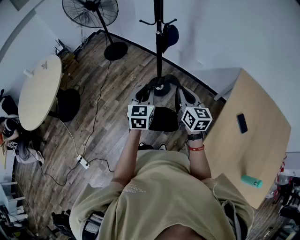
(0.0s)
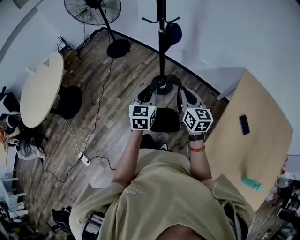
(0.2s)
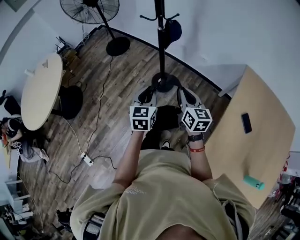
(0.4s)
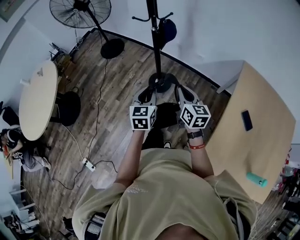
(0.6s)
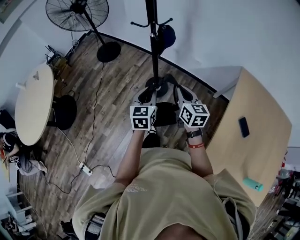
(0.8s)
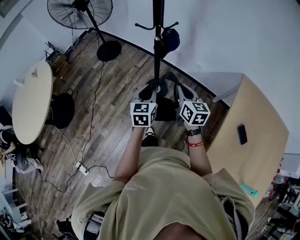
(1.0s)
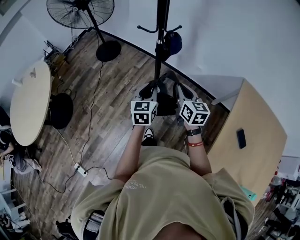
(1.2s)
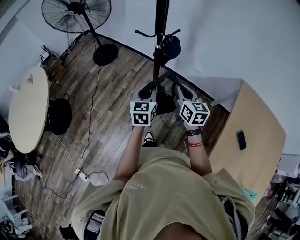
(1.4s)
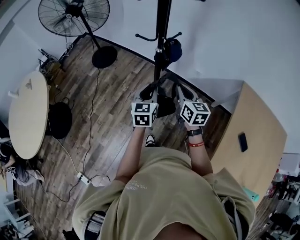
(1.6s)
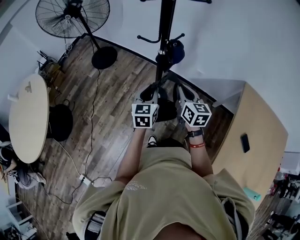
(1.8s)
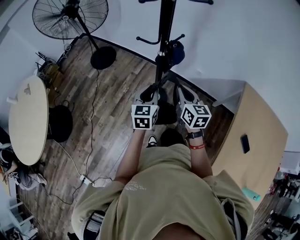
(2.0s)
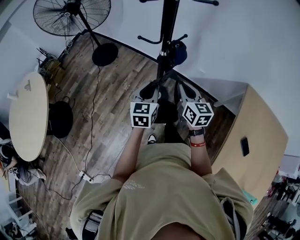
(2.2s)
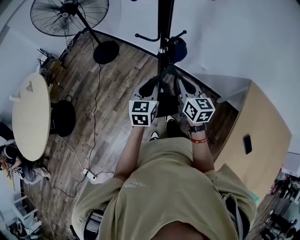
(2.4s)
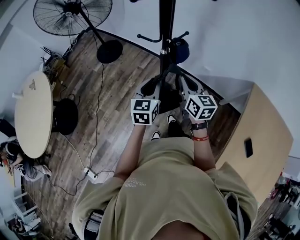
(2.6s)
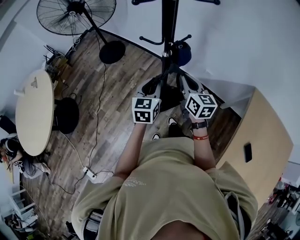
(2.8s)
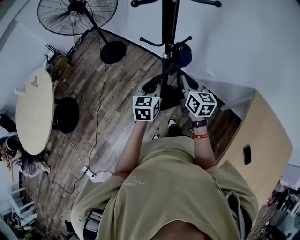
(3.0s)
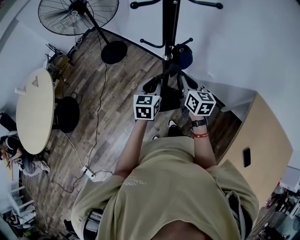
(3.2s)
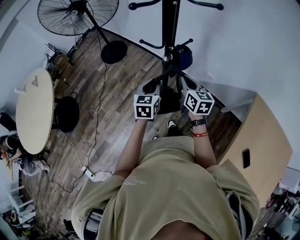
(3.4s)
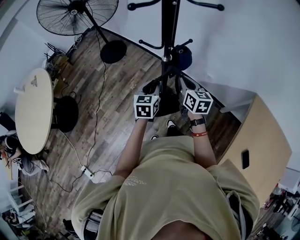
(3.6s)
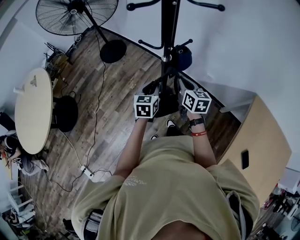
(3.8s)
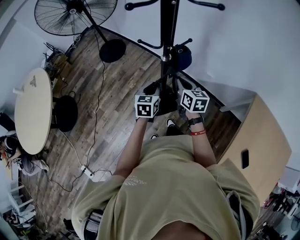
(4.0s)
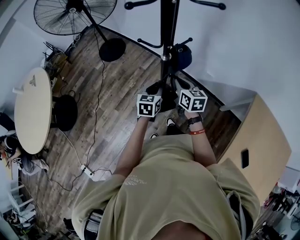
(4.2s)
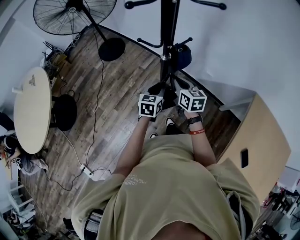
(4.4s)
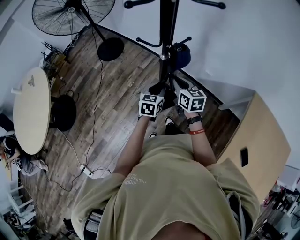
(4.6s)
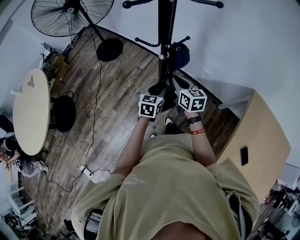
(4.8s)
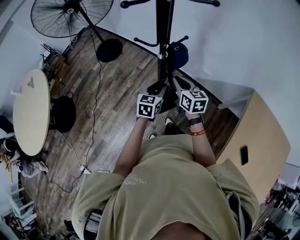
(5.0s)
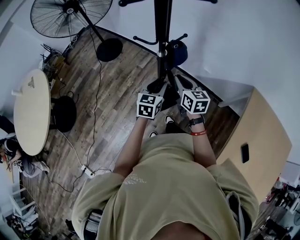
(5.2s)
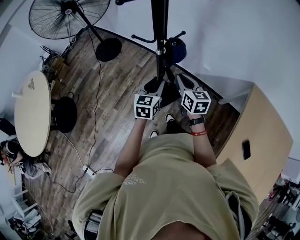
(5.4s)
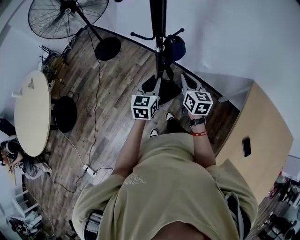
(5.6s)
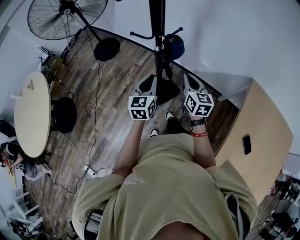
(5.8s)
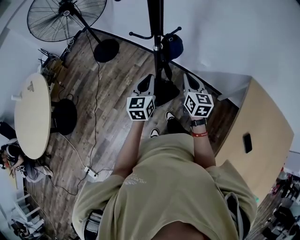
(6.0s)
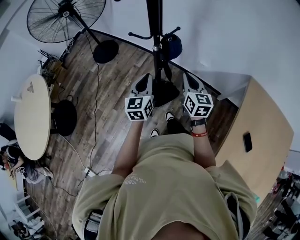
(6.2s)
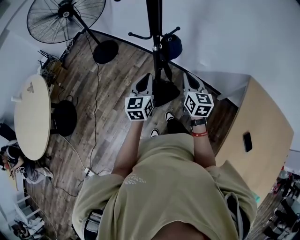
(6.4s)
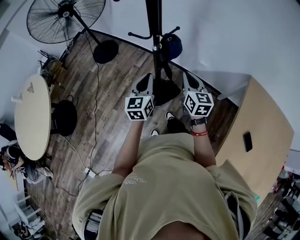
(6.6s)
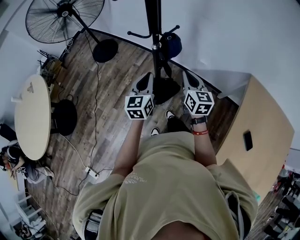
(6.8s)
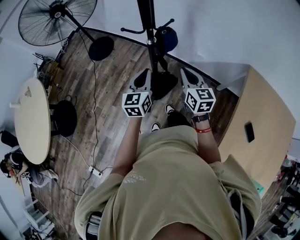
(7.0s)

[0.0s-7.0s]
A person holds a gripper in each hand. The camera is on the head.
0.0s to 1.4s: Both grippers travel together forward, approximately 25 cm.
1.4s to 2.8s: The grippers both shift forward by roughly 15 cm.
2.8s to 4.2s: The left gripper shifts roughly 10 cm downward. Meanwhile the right gripper goes some 10 cm downward and forward.
4.2s to 5.6s: The left gripper heads upward, covering about 5 cm; the right gripper moves to the right and backward, some 10 cm.
5.6s to 7.0s: There are only small adjustments of the grippers.

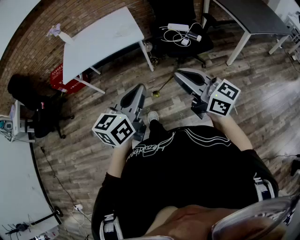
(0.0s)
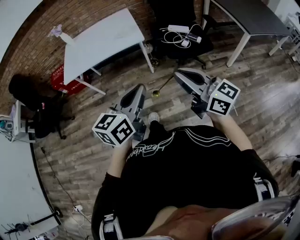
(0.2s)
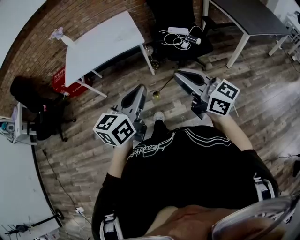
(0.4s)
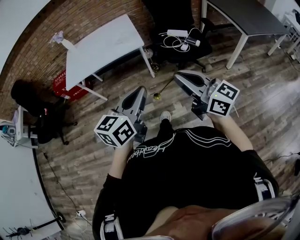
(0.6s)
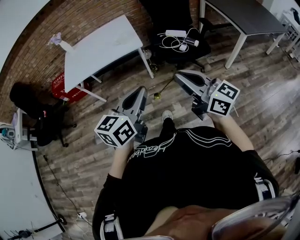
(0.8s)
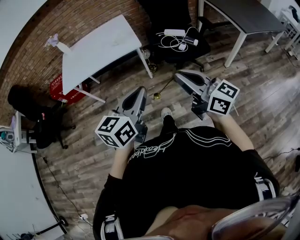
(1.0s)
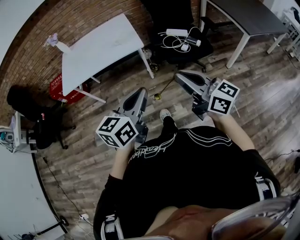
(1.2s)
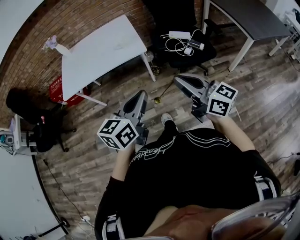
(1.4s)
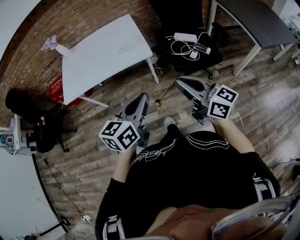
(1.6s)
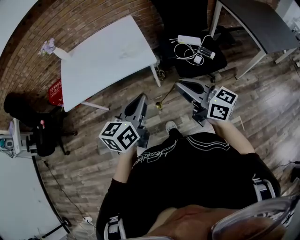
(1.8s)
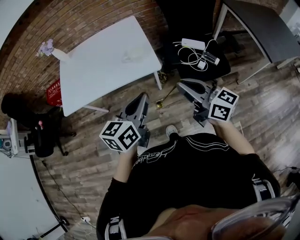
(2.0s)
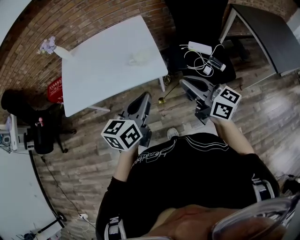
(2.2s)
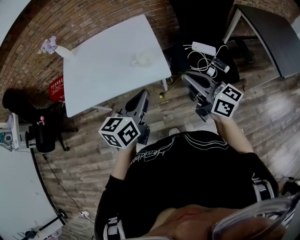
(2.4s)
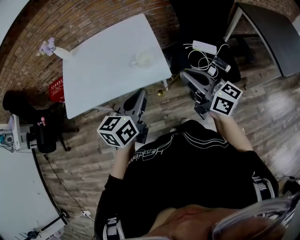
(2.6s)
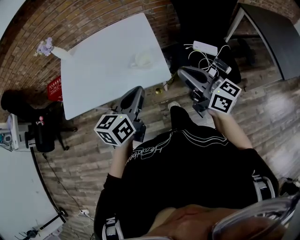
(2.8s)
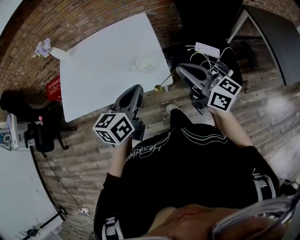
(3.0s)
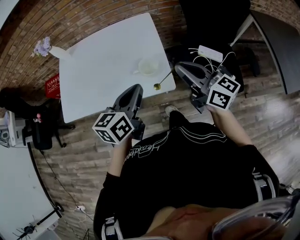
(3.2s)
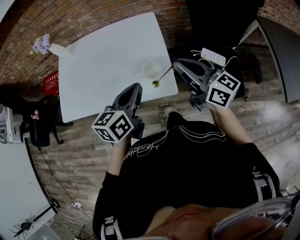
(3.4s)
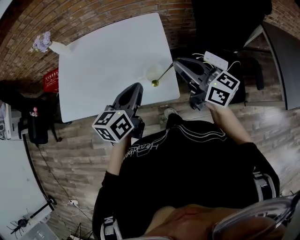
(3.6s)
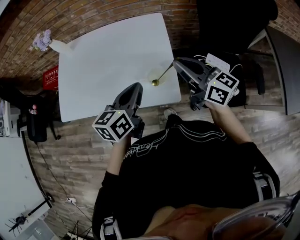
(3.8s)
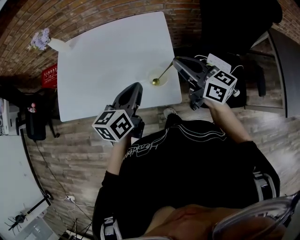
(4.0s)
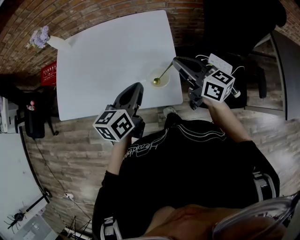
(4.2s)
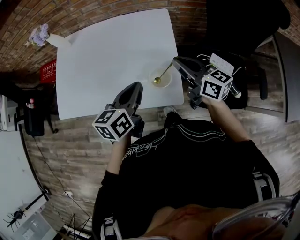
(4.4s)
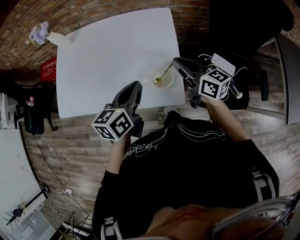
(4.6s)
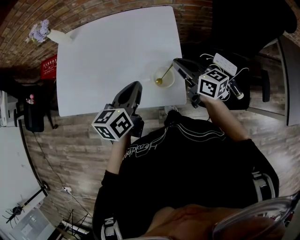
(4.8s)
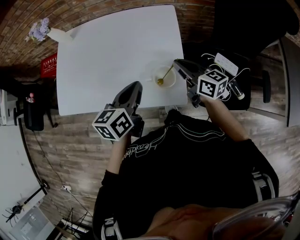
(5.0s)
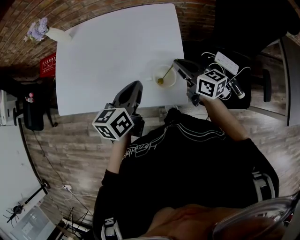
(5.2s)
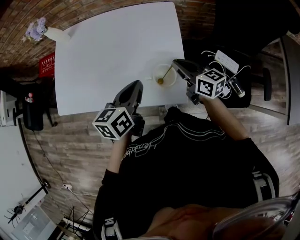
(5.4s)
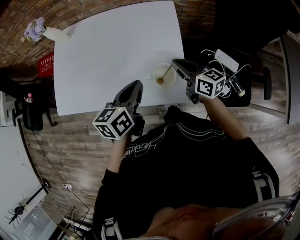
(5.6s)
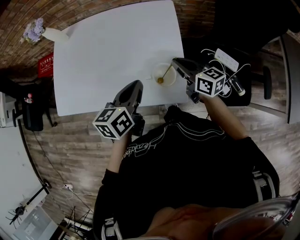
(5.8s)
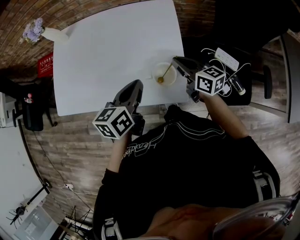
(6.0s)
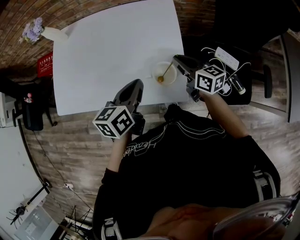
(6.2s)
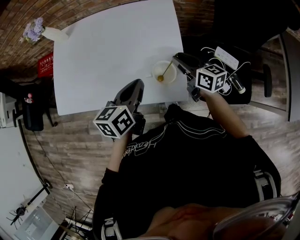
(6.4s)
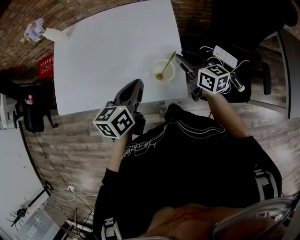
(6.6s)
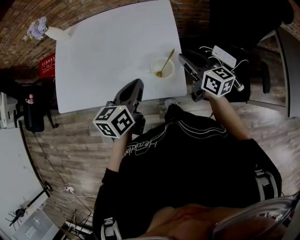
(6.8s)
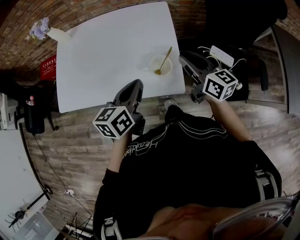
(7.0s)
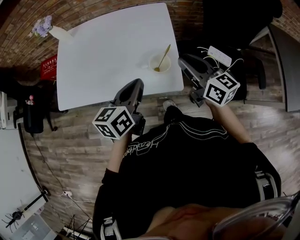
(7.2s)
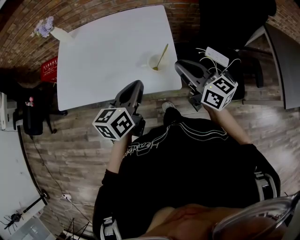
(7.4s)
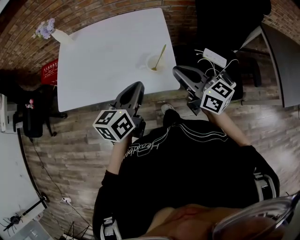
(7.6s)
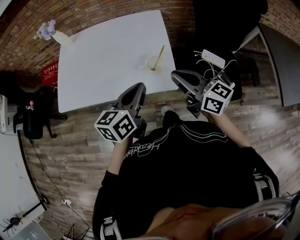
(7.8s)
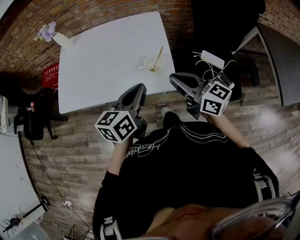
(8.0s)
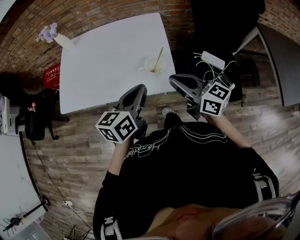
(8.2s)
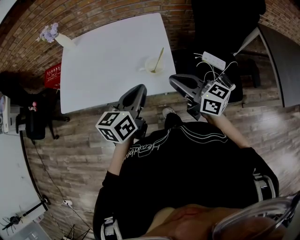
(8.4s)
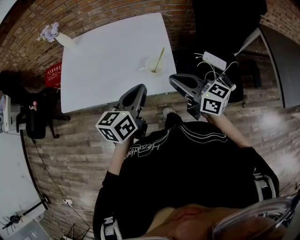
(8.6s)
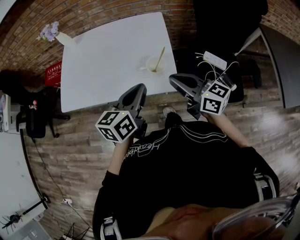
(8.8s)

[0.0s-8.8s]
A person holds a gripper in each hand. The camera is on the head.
0.0s to 1.4s: Both grippers travel together forward, about 10 cm.
1.4s to 3.0s: The pair of grippers is taken forward, some 40 cm.
3.0s to 4.4s: The grippers both shift forward and downward by some 20 cm.
4.4s to 5.8s: The right gripper goes approximately 10 cm downward.
5.8s to 7.4s: The right gripper travels upward and backward by roughly 20 cm, and opens, then closes once more, while the left gripper moves backward and upward, about 10 cm.
7.4s to 8.8s: The right gripper is displaced backward by about 5 cm.

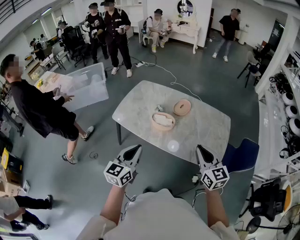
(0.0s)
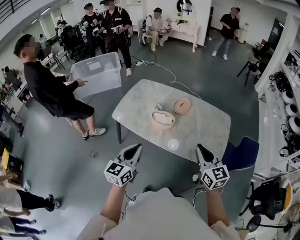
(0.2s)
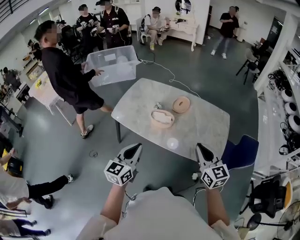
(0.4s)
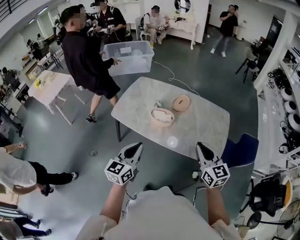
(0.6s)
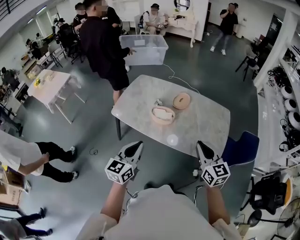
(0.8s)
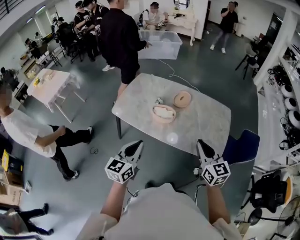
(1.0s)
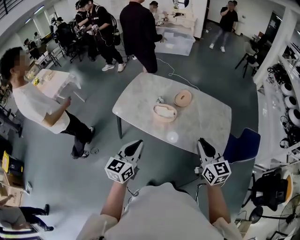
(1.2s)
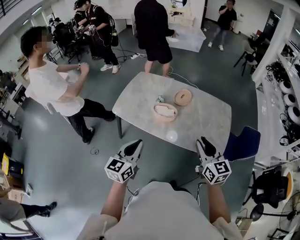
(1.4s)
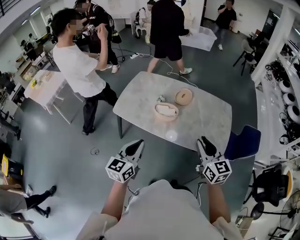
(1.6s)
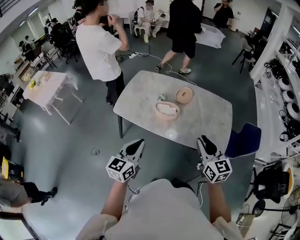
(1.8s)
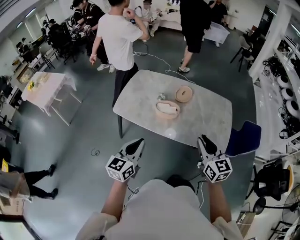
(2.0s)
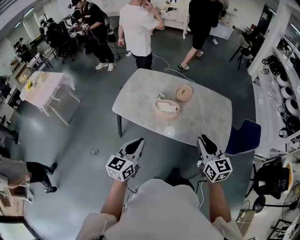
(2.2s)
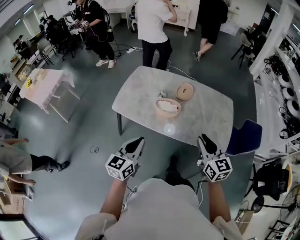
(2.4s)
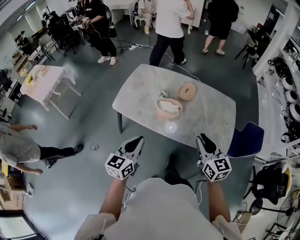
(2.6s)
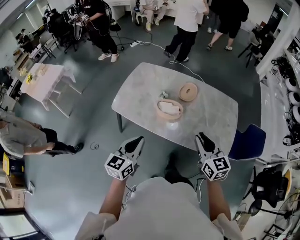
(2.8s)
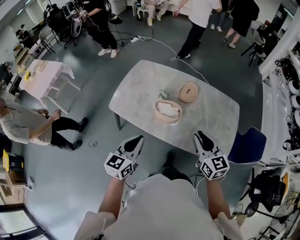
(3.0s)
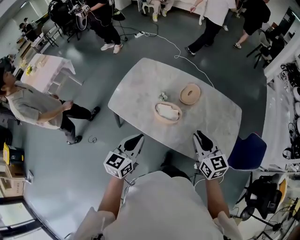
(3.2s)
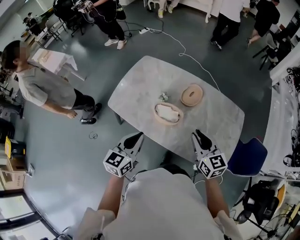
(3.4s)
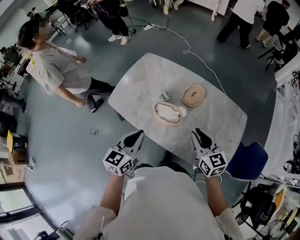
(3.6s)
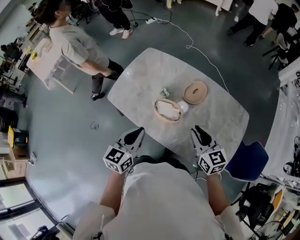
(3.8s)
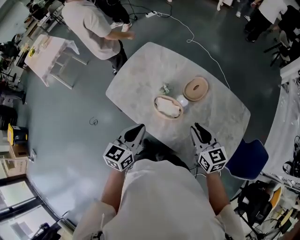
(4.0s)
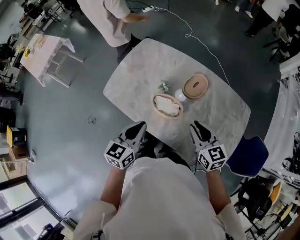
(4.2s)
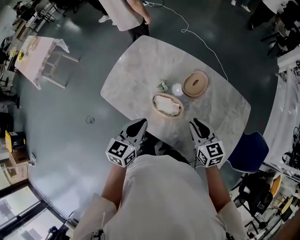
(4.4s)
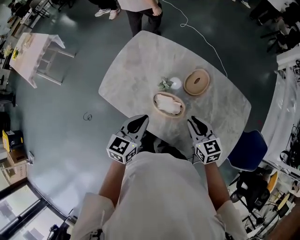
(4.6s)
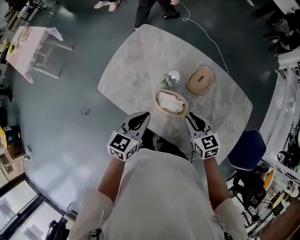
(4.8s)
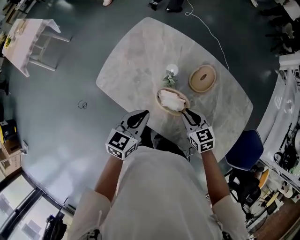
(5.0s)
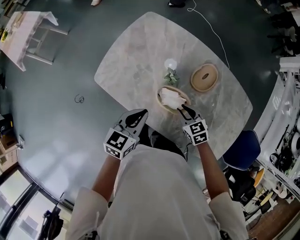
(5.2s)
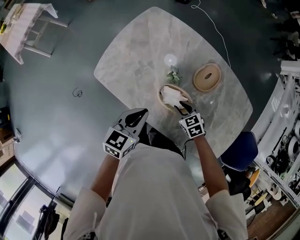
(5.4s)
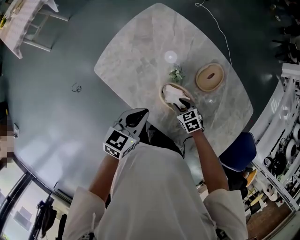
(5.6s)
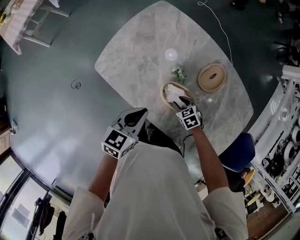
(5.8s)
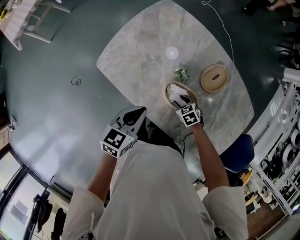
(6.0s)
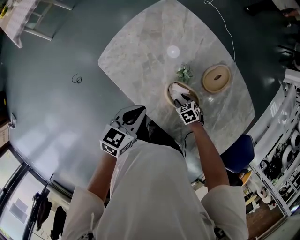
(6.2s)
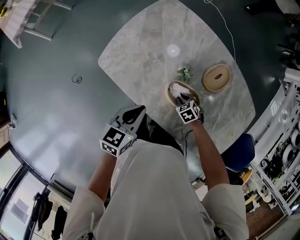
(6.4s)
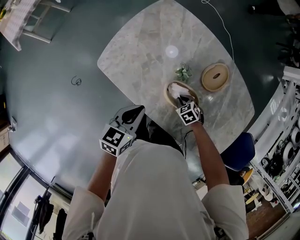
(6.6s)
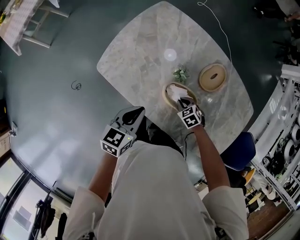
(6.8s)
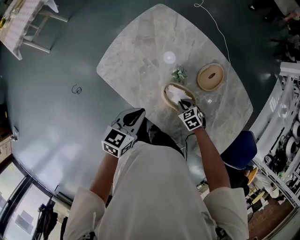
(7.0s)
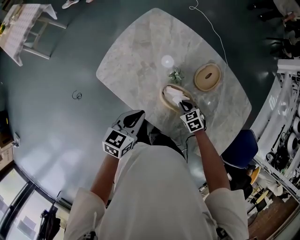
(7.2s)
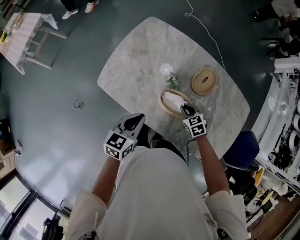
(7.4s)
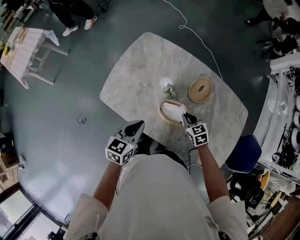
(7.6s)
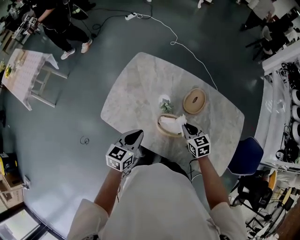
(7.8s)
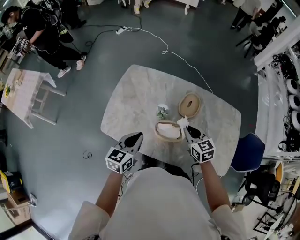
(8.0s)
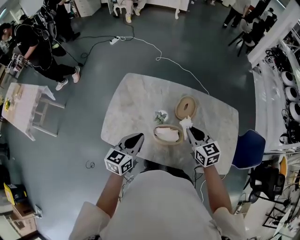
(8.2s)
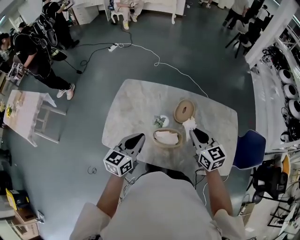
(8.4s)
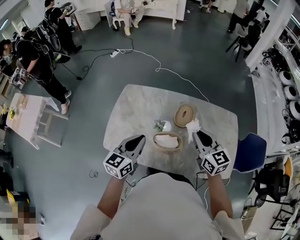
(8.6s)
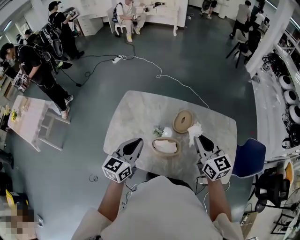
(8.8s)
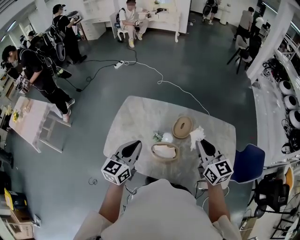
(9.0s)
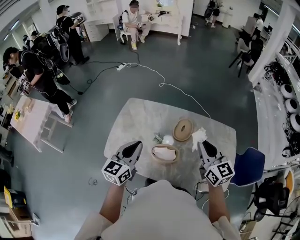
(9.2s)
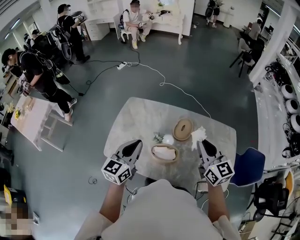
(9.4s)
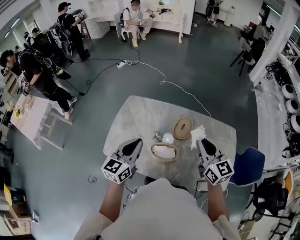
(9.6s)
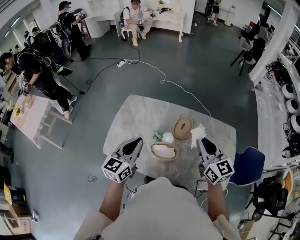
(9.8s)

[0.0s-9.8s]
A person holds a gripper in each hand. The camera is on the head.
0.0s to 1.4s: There are only small adjustments of the grippers.
1.4s to 2.8s: The right gripper moves forward and to the left, some 10 cm; the left gripper is displaced forward by approximately 10 cm.
2.8s to 4.2s: The left gripper shifts roughly 20 cm forward and to the right. Meanwhile the right gripper shifts about 20 cm forward.
4.2s to 5.6s: The left gripper travels downward, forward and to the left by roughly 15 cm. The right gripper goes some 30 cm downward, and tilts its fingers roughly 40 degrees downward.
5.6s to 7.0s: The right gripper closes.
7.0s to 8.4s: The right gripper travels upward by about 40 cm, and tilts its fingers roughly 50 degrees upward. Meanwhile the left gripper travels upward by roughly 15 cm, and swivels roughly 20 degrees.
8.4s to 9.8s: Both grippers travel together upward, some 10 cm.
